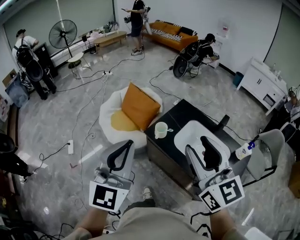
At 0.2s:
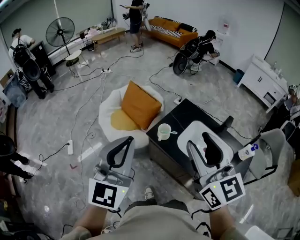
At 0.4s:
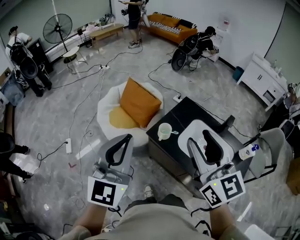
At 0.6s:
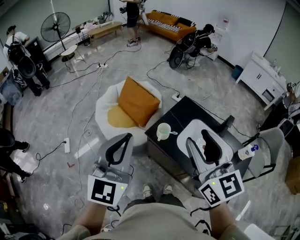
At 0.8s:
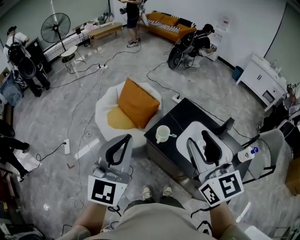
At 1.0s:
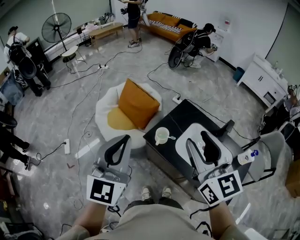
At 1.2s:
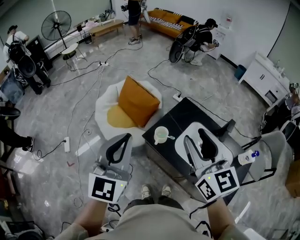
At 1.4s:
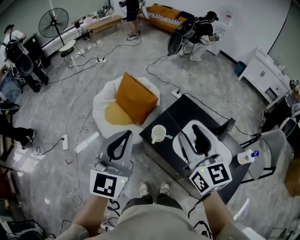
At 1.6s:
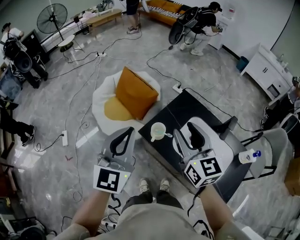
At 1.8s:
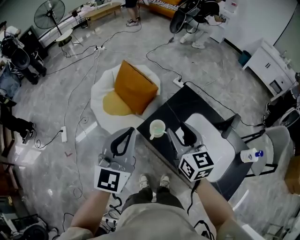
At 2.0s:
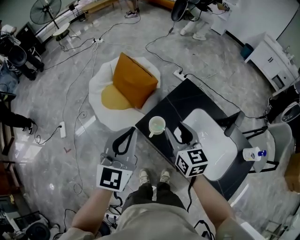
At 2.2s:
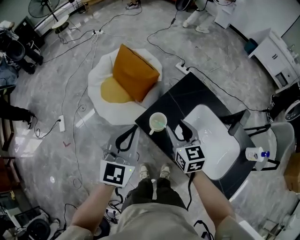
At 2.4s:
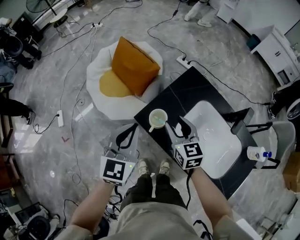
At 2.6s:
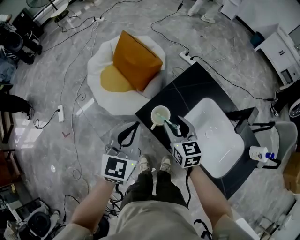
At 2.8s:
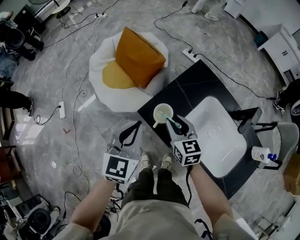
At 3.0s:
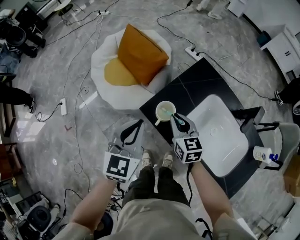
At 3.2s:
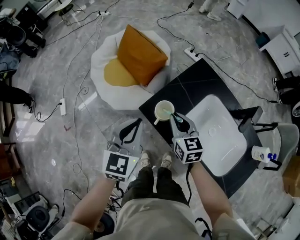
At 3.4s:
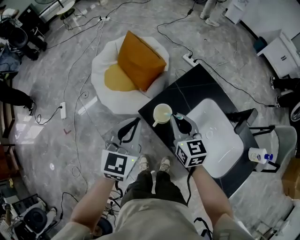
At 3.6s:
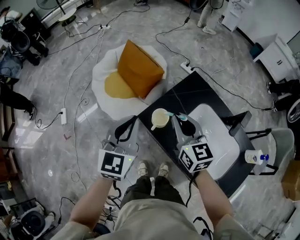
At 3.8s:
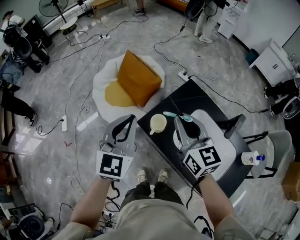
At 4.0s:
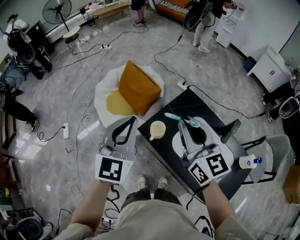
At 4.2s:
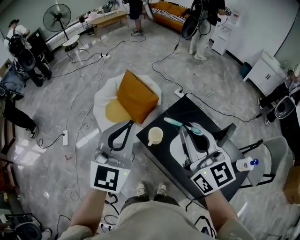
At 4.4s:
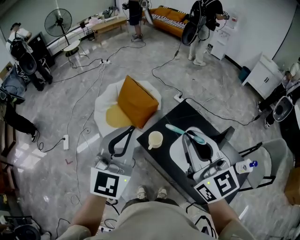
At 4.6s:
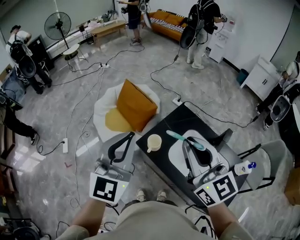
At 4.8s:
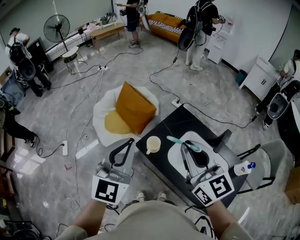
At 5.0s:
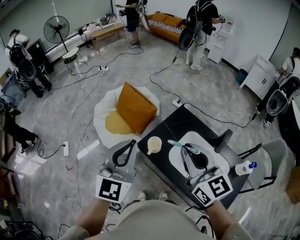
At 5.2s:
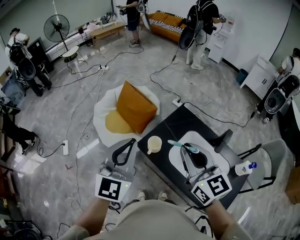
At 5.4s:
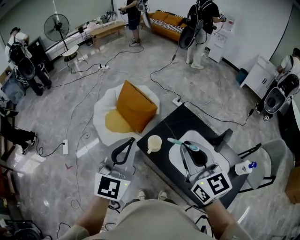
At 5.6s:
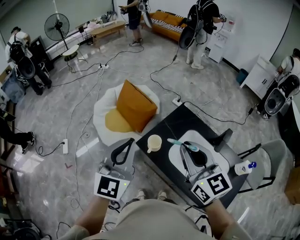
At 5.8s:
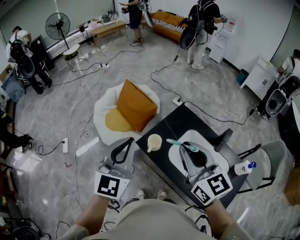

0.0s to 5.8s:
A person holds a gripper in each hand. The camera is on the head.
0.0s to 1.4s: The right gripper is displaced forward and downward by about 20 cm; the left gripper travels forward by roughly 15 cm.
1.4s to 2.8s: The two grippers go approximately 25 cm downward. The left gripper swivels about 20 degrees, while the right gripper turns by about 30 degrees.
2.8s to 4.4s: Both grippers move upward, some 30 cm. The right gripper tips its fingers upward by some 30 degrees, and closes up; the left gripper rotates about 30 degrees.
4.4s to 5.8s: The grippers both shift downward by roughly 5 cm.

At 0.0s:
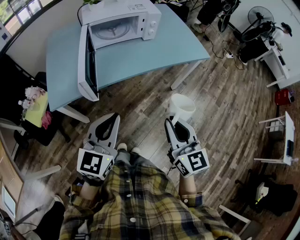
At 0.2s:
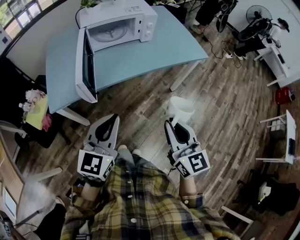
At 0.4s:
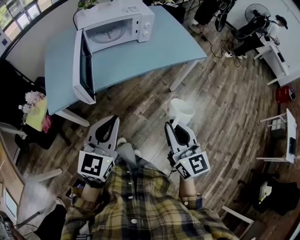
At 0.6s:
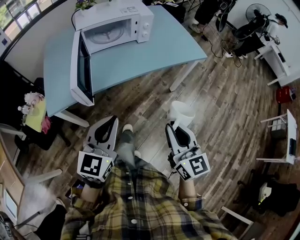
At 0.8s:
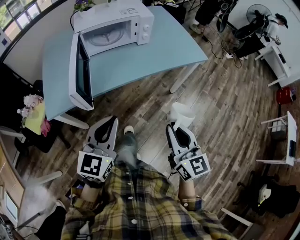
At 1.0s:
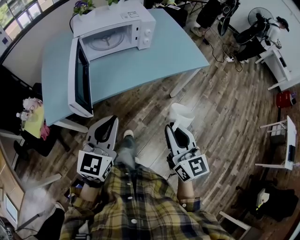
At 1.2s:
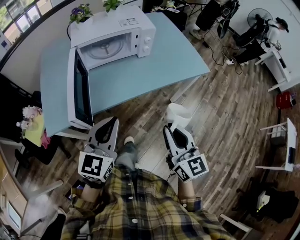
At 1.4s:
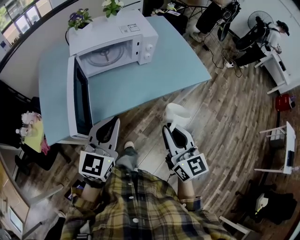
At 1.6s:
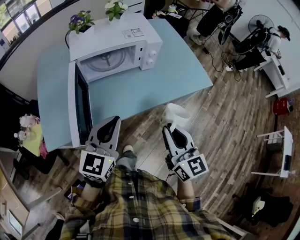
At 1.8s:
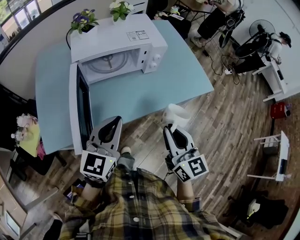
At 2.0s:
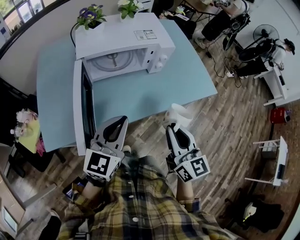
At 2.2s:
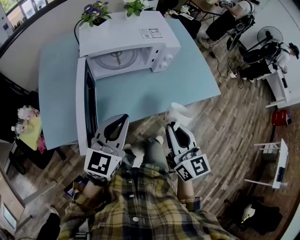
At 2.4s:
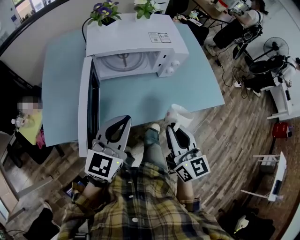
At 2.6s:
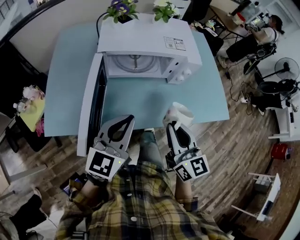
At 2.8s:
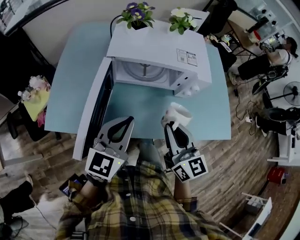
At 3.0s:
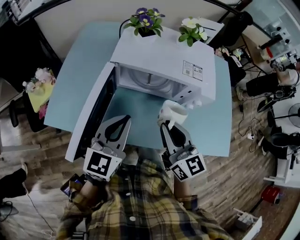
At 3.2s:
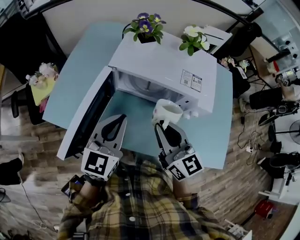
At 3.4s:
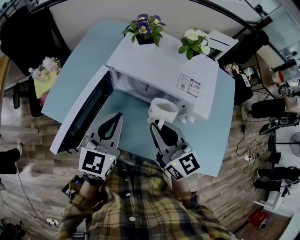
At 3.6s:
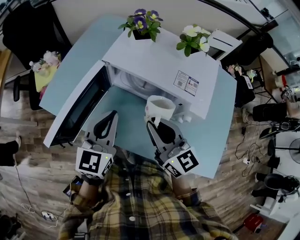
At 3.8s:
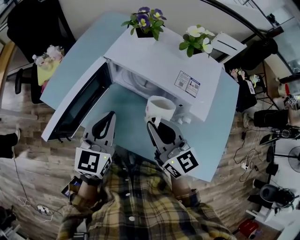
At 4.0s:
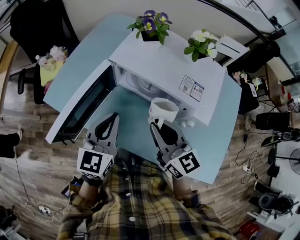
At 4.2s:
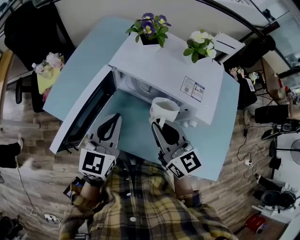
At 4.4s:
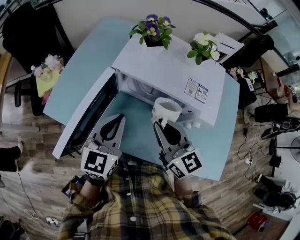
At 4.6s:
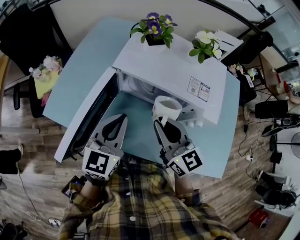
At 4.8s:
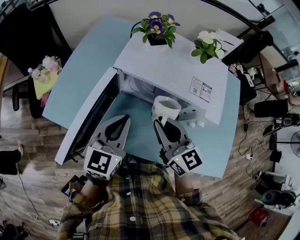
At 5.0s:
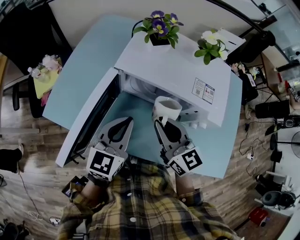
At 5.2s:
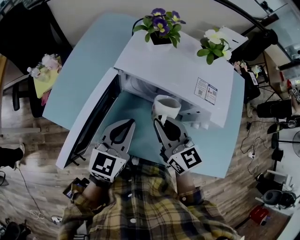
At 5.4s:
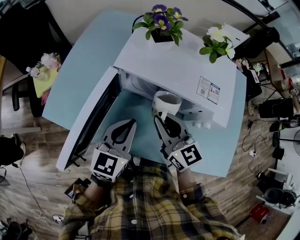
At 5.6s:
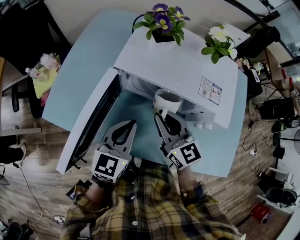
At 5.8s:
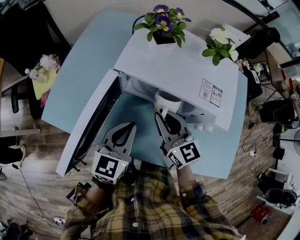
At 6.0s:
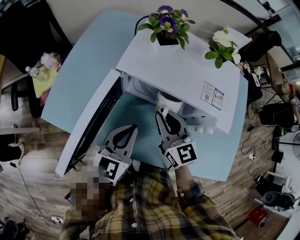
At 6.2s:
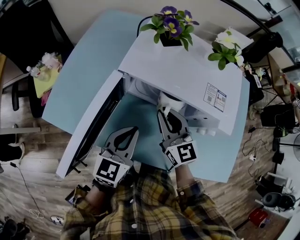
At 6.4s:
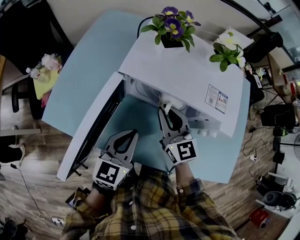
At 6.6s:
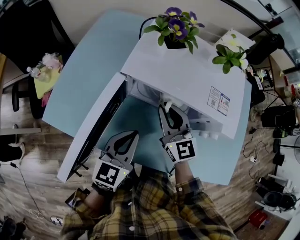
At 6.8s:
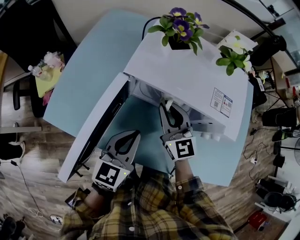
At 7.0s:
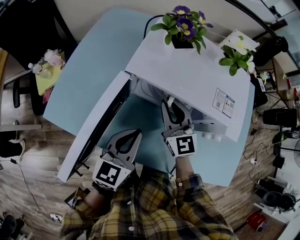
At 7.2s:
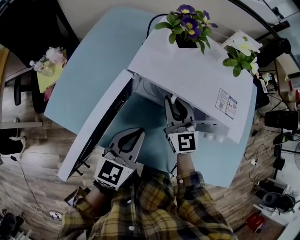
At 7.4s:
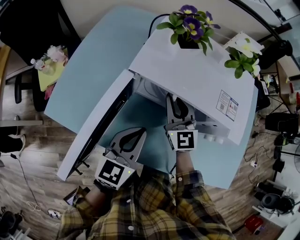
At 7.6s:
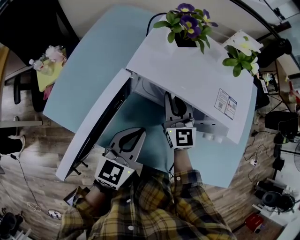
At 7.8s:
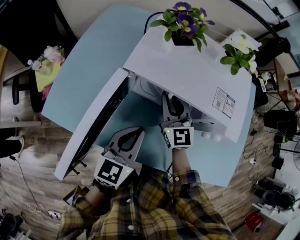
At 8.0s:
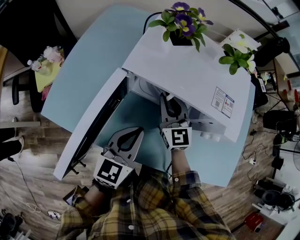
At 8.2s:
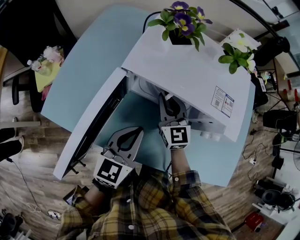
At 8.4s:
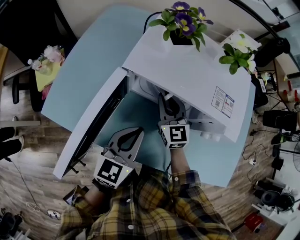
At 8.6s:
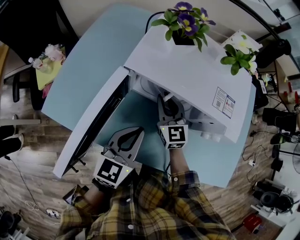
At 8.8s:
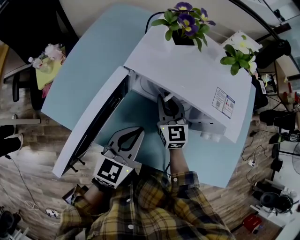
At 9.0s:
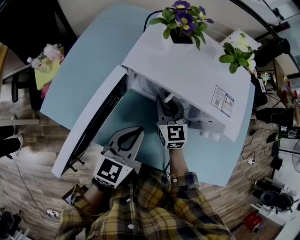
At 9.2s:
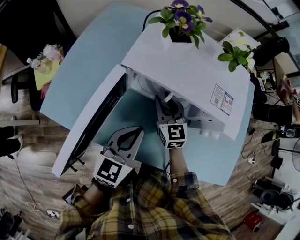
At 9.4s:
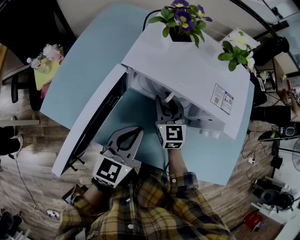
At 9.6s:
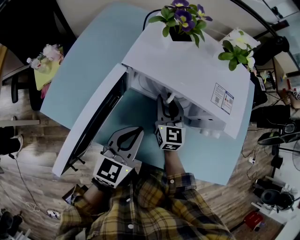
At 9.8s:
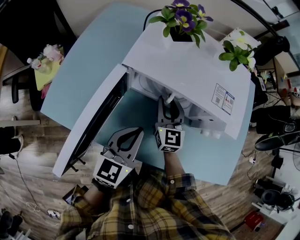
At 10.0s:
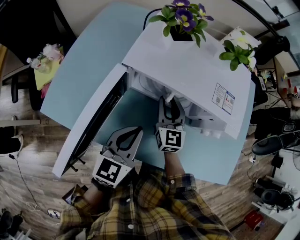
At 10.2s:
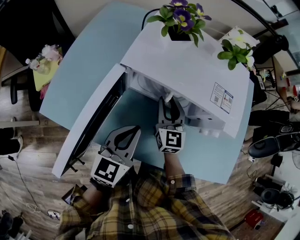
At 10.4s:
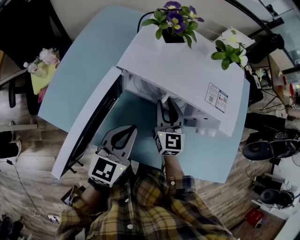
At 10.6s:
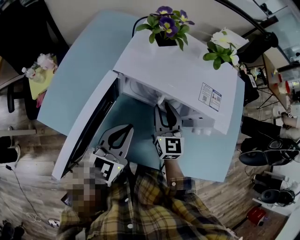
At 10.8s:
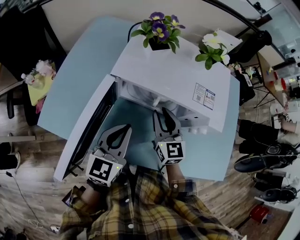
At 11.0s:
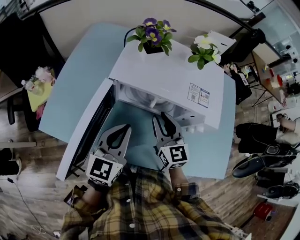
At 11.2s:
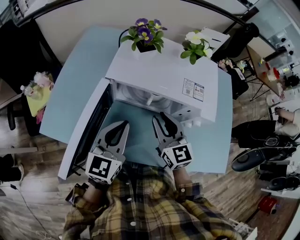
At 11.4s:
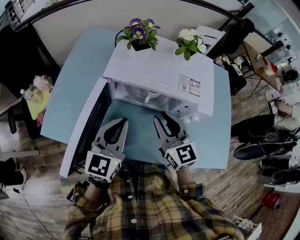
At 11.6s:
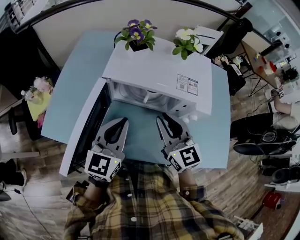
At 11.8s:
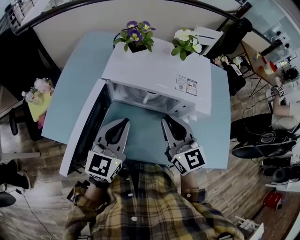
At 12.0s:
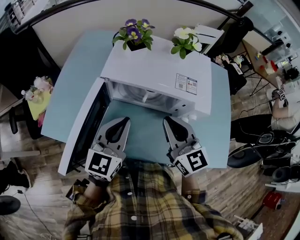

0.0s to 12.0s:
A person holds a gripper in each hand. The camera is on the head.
0.0s to 1.6s: The grippers both shift forward by approximately 20 cm.
1.6s to 3.0s: The left gripper ends up some 15 cm from where it was, and turns by approximately 30 degrees. Meanwhile the right gripper moves roughly 25 cm, and swivels about 30 degrees.
3.0s to 4.4s: The right gripper heads forward, covering some 5 cm.
4.4s to 6.0s: The left gripper shifts some 5 cm downward. Meanwhile the right gripper heads downward and forward, covering roughly 10 cm.
6.0s to 7.6s: The right gripper goes roughly 10 cm forward.
7.6s to 9.0s: The right gripper shifts about 5 cm downward.
9.0s to 10.4s: There are only small adjustments of the grippers.
10.4s to 12.0s: The left gripper travels upward by about 10 cm. The right gripper goes approximately 20 cm upward and backward, and closes.

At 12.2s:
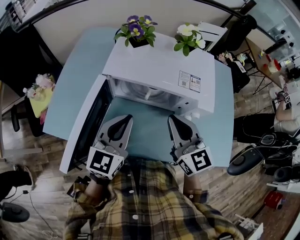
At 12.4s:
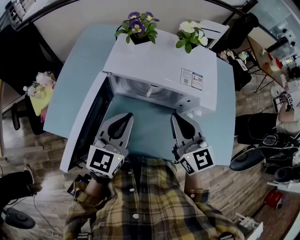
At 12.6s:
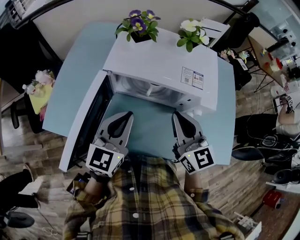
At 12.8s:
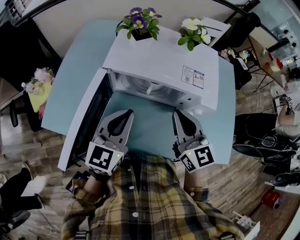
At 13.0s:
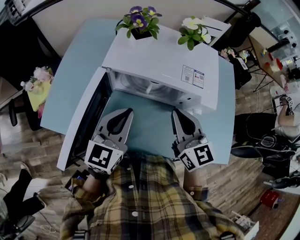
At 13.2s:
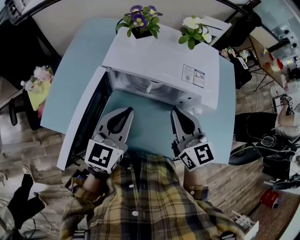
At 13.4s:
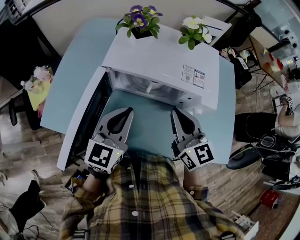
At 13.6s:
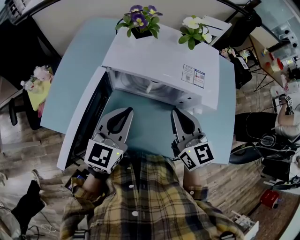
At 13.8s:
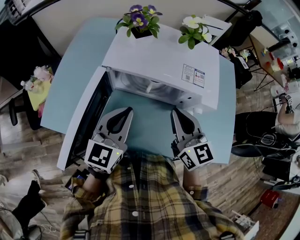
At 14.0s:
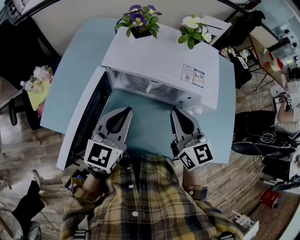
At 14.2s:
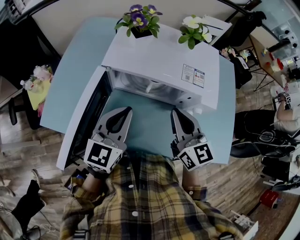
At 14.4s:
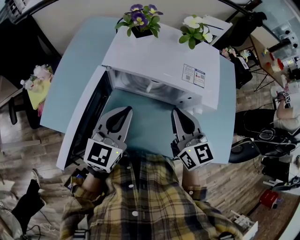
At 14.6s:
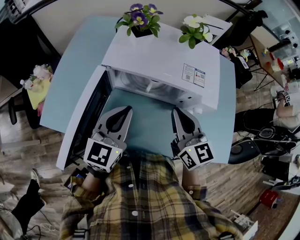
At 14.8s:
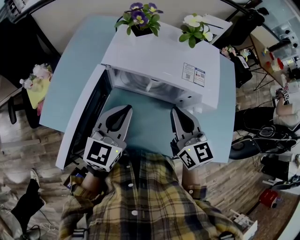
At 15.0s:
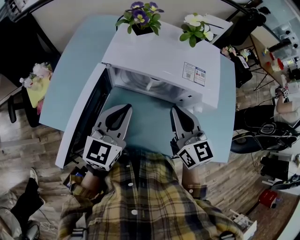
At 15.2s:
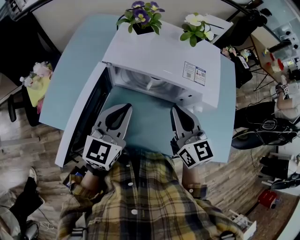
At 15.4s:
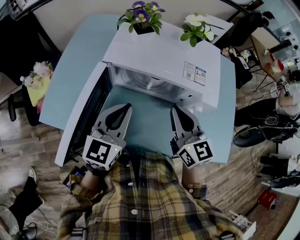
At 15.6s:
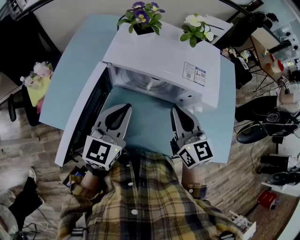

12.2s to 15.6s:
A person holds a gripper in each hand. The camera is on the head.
12.2s to 13.8s: The grippers make only small movements.
13.8s to 15.6s: Neither gripper changes place.

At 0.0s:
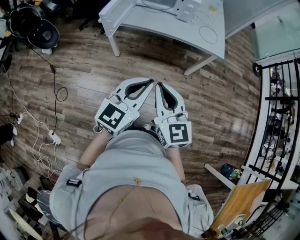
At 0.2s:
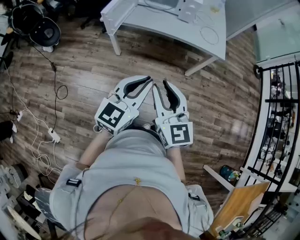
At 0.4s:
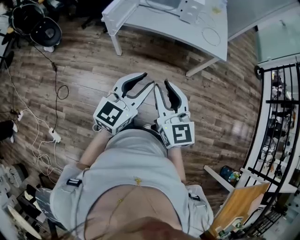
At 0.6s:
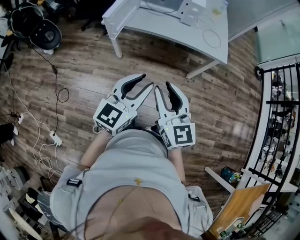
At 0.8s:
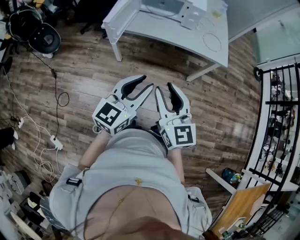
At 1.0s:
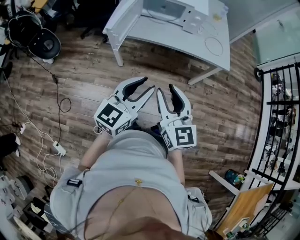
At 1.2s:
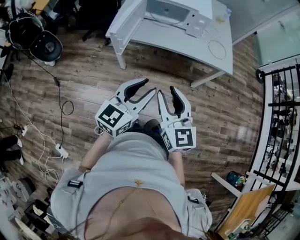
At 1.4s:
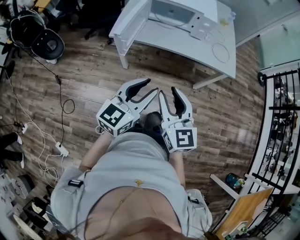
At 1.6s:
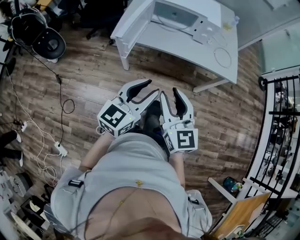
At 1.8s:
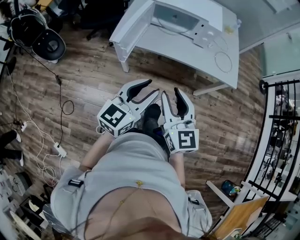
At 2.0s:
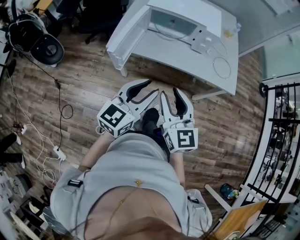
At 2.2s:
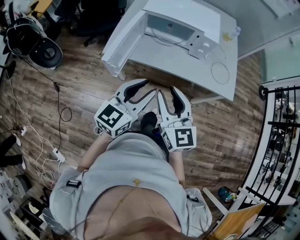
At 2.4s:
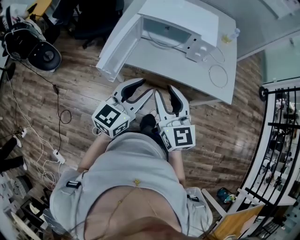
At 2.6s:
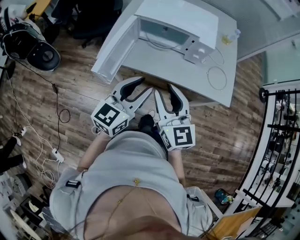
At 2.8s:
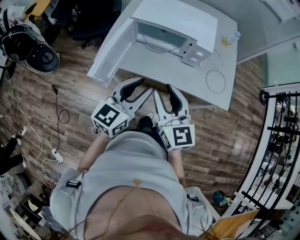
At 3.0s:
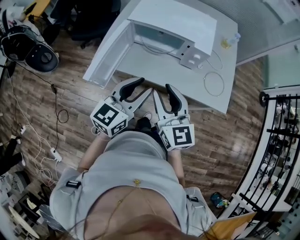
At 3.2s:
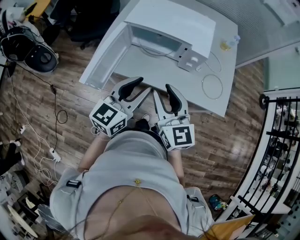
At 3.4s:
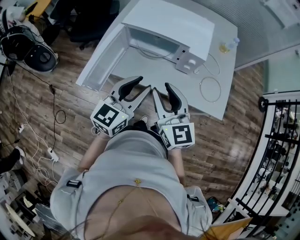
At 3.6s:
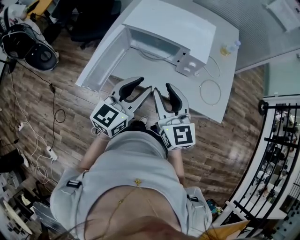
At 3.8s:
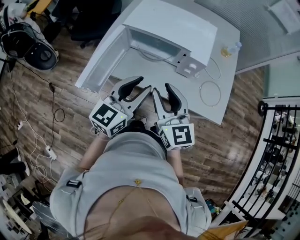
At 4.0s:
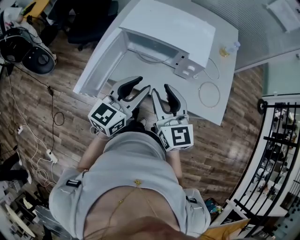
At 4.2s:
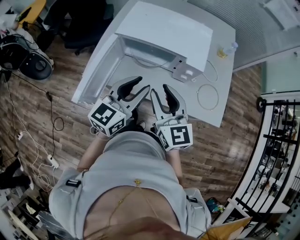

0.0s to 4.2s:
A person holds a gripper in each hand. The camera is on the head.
0.0s to 1.4s: The left gripper is displaced to the left and forward by approximately 15 cm, and opens up. Meanwhile the right gripper travels forward and to the left by roughly 15 cm, and opens.
1.4s to 2.8s: The grippers both shift forward by about 25 cm.
2.8s to 4.2s: Both grippers move forward, approximately 10 cm.
